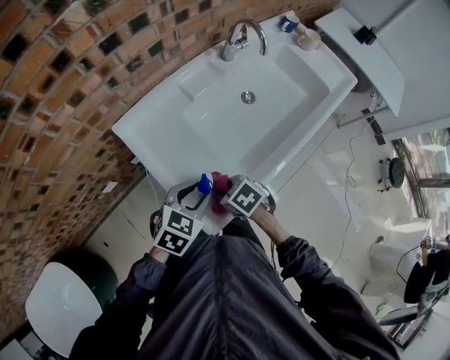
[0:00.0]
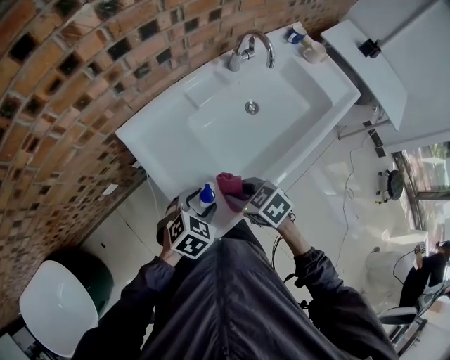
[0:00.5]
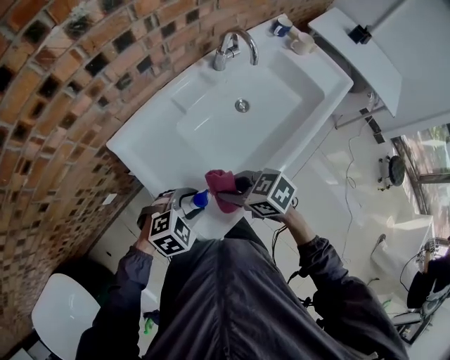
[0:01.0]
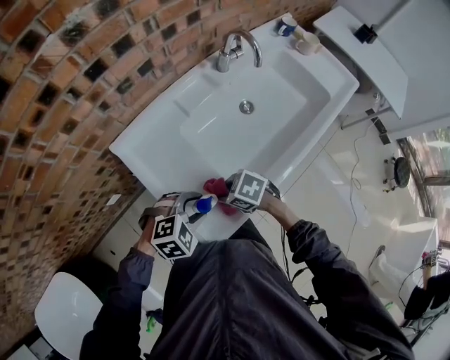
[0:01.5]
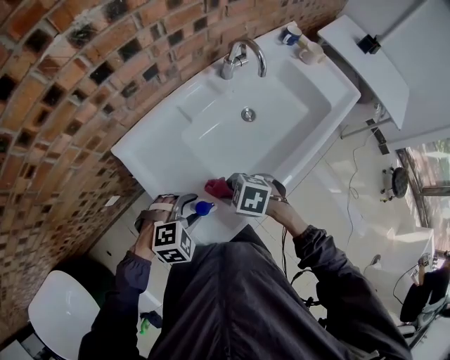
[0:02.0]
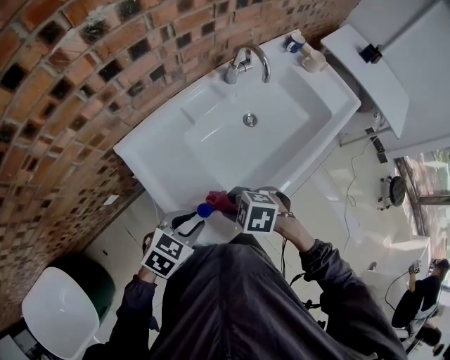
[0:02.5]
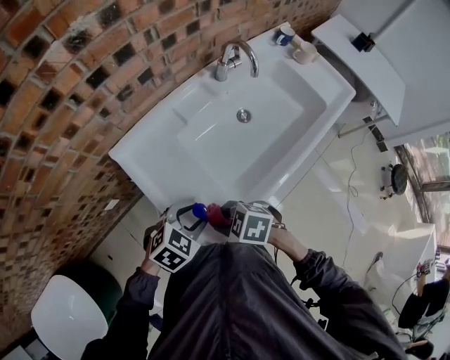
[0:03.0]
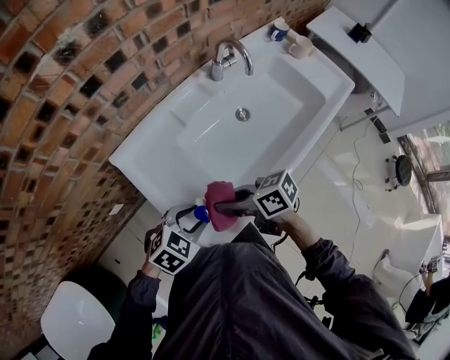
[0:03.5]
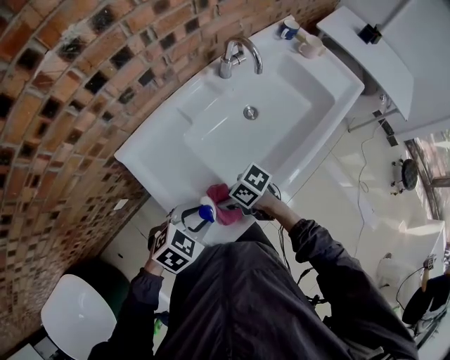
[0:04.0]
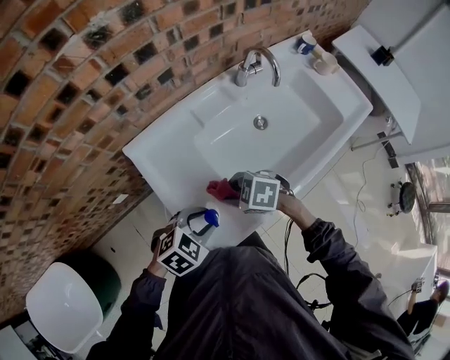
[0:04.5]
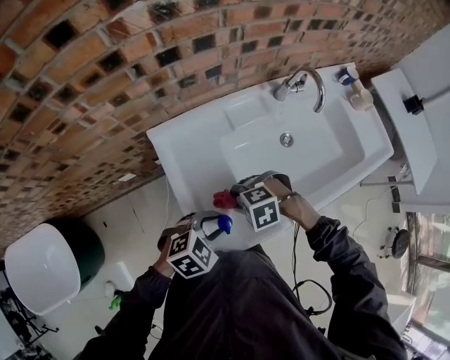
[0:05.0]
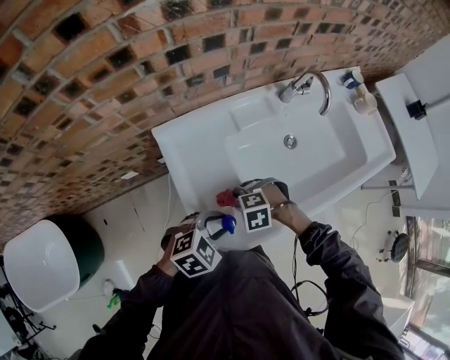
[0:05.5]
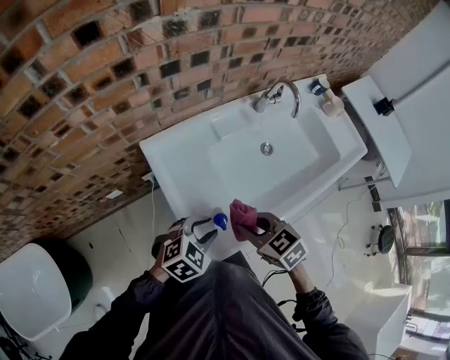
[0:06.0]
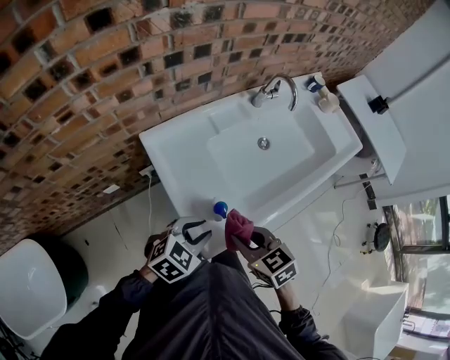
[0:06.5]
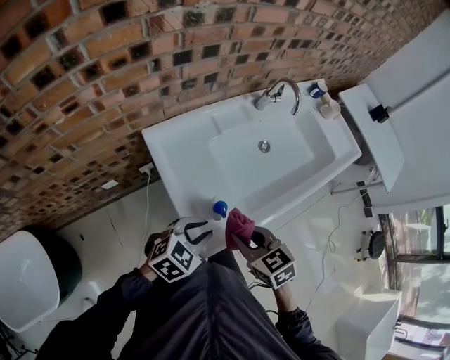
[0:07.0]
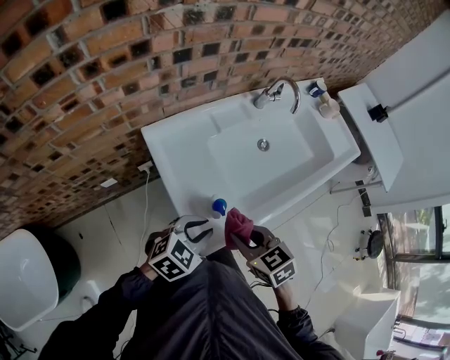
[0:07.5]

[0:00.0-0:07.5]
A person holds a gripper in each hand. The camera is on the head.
0:00.0 to 0:02.0: The left gripper rotates around the line of its fingers by about 40 degrees, clockwise from behind, and opens up; the right gripper swings up and down, roughly 10 cm each way, with 2 reversals, and changes its angle by roughly 30 degrees.
0:02.0 to 0:04.0: The right gripper swivels approximately 40 degrees. Meanwhile the left gripper swivels roughly 30 degrees.
0:04.0 to 0:05.5: The right gripper rotates around the line of its fingers by roughly 70 degrees, counterclockwise from behind.
0:05.5 to 0:07.5: The right gripper goes some 15 cm upward, and rotates around the line of its fingers by approximately 60 degrees, clockwise from behind. Meanwhile the left gripper moves about 5 cm.

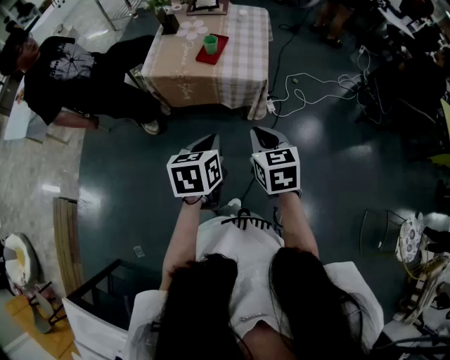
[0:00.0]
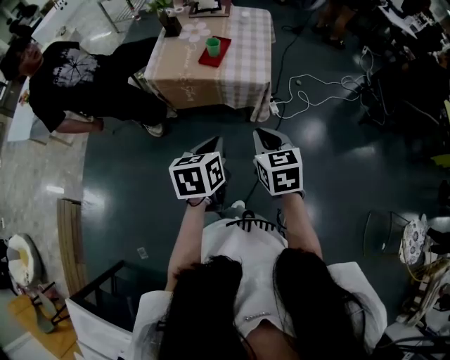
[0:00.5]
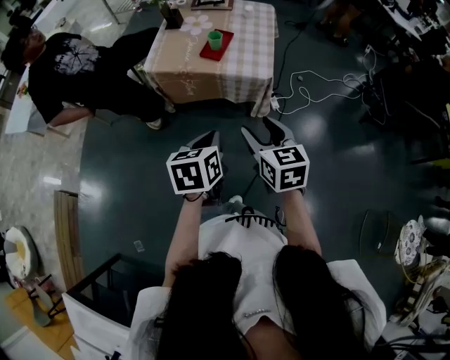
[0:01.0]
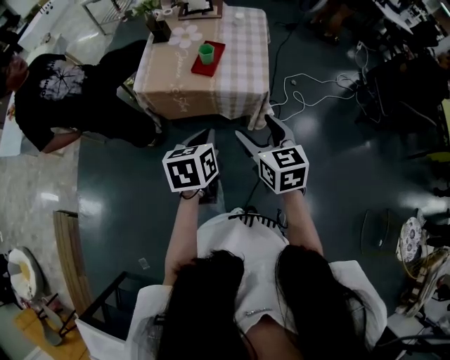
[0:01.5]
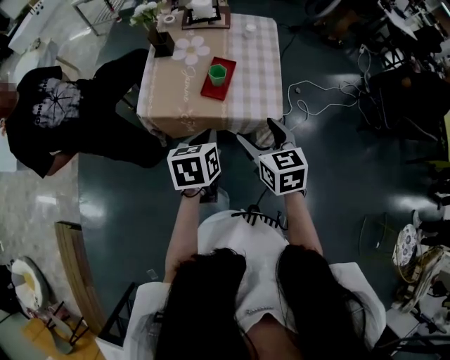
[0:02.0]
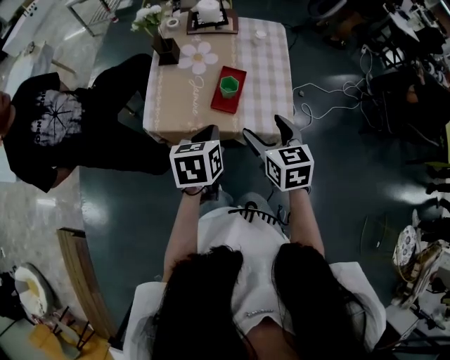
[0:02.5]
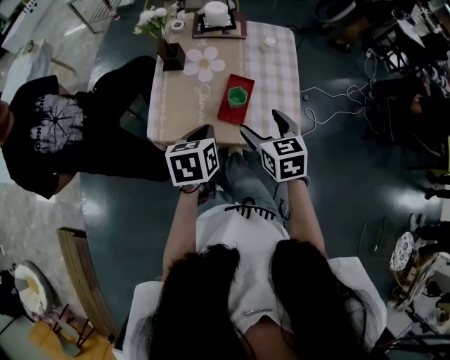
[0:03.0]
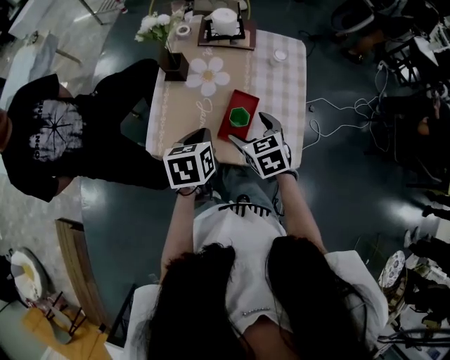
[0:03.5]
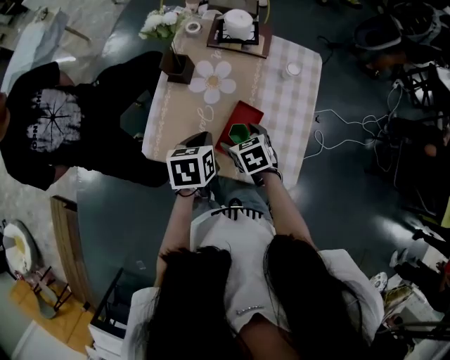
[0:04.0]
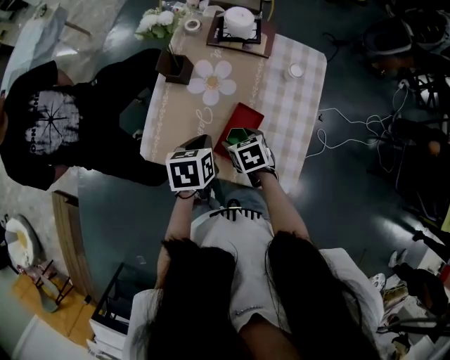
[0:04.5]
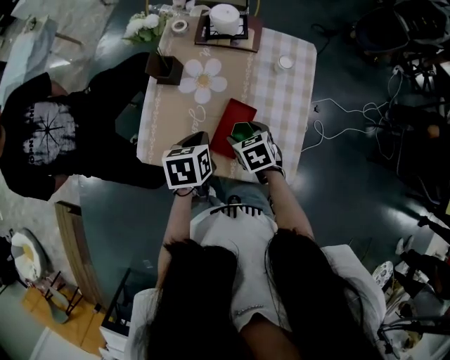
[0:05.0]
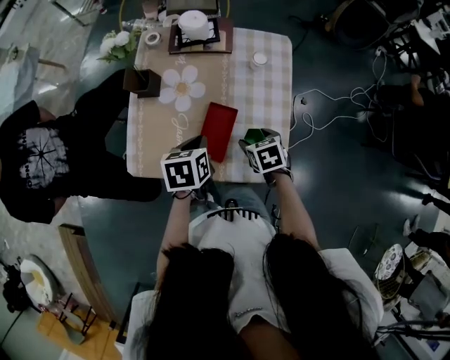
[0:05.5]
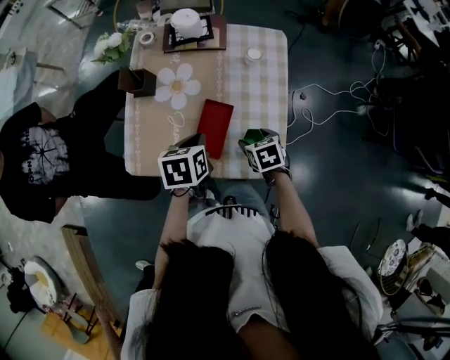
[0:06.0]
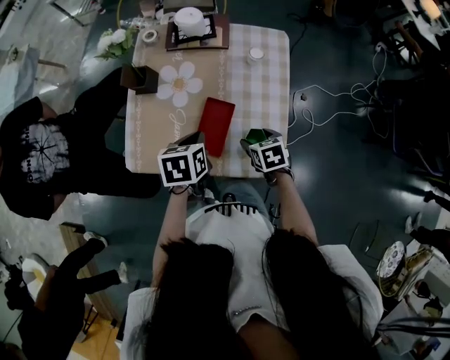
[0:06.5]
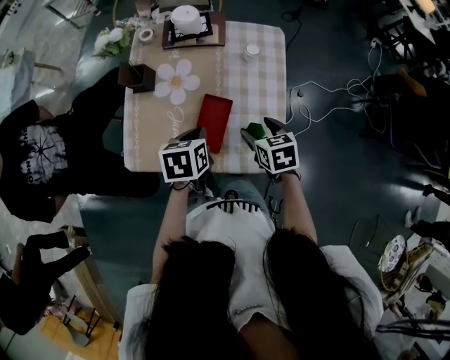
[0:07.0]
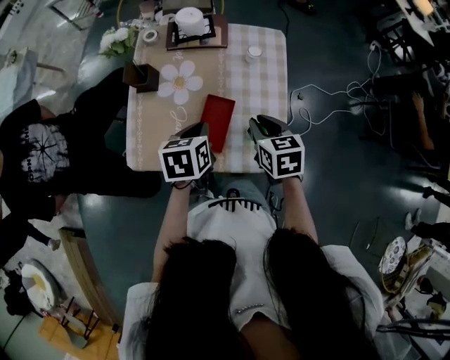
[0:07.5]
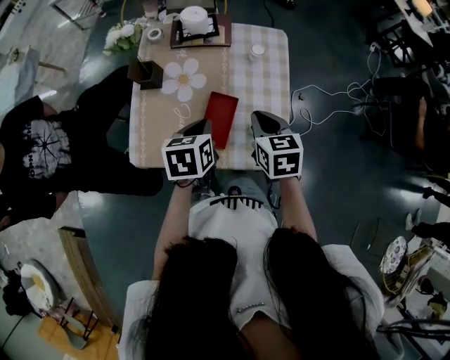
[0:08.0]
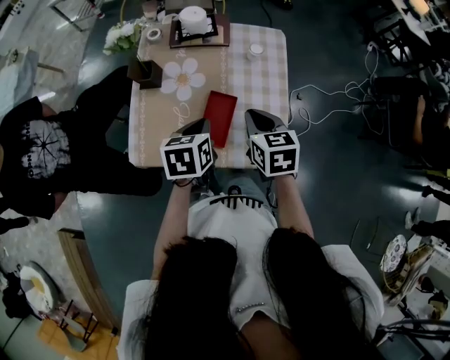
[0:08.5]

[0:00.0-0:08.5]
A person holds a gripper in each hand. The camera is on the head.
0:00.0 to 0:02.0: Both grippers move forward, some 25 cm. The right gripper opens.
0:02.0 to 0:04.0: The left gripper shifts roughly 25 cm forward. The right gripper goes about 30 cm forward and downward, and changes its angle by approximately 30 degrees.
0:04.0 to 0:06.5: The right gripper travels to the right by roughly 15 cm. Meanwhile the left gripper goes roughly 5 cm to the right.
0:06.5 to 0:08.5: The right gripper travels upward by approximately 15 cm, swivels some 20 degrees, and closes.

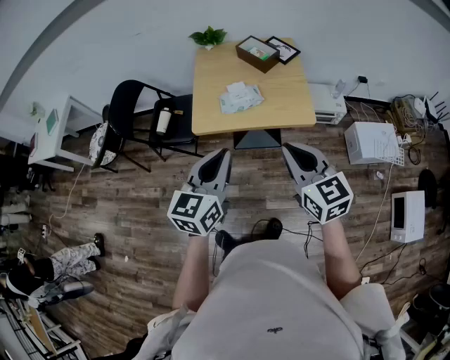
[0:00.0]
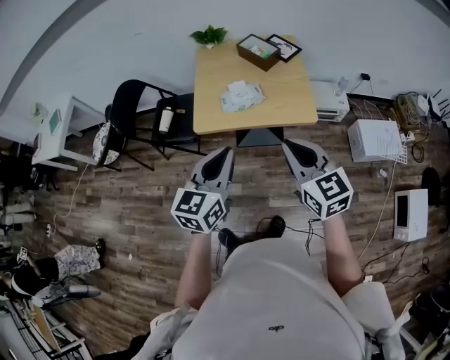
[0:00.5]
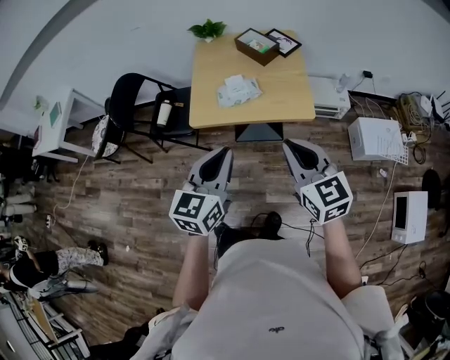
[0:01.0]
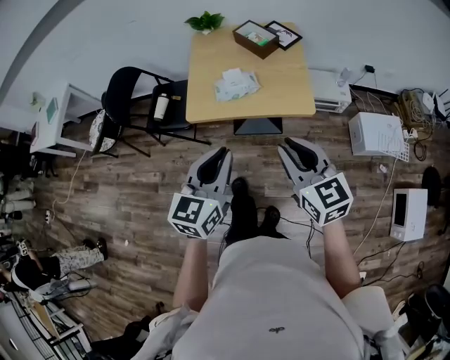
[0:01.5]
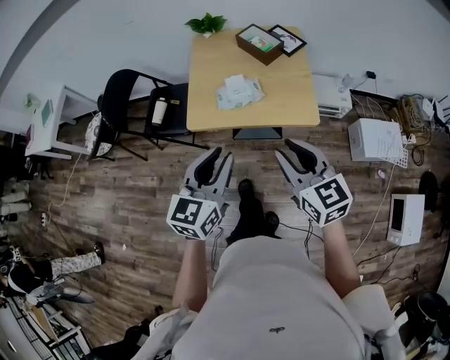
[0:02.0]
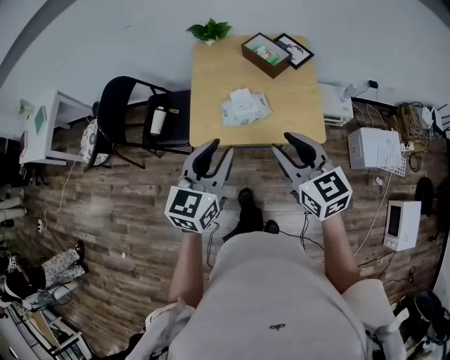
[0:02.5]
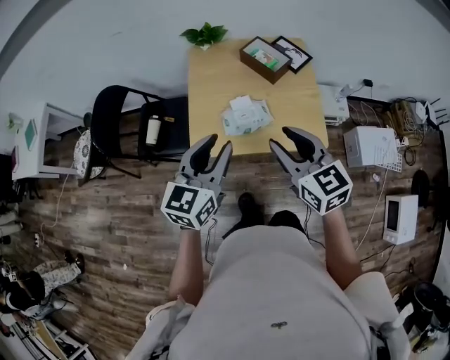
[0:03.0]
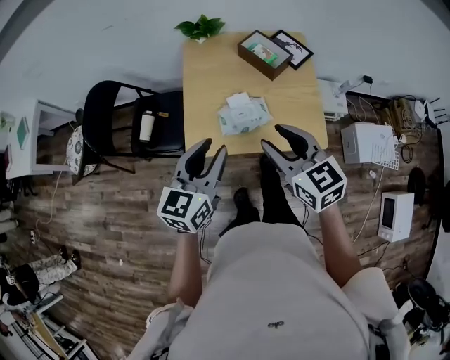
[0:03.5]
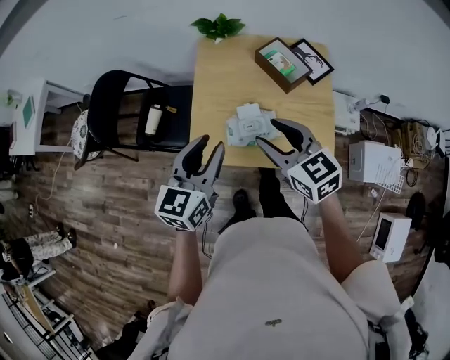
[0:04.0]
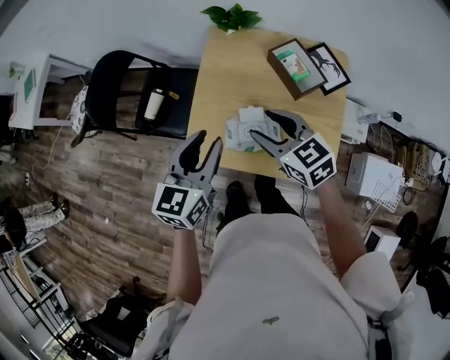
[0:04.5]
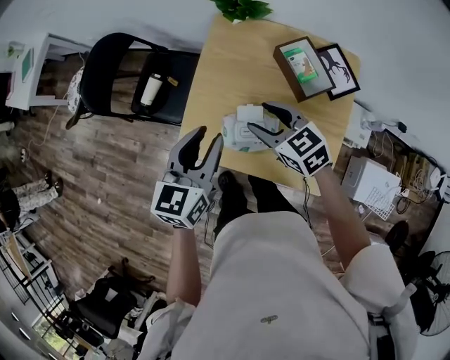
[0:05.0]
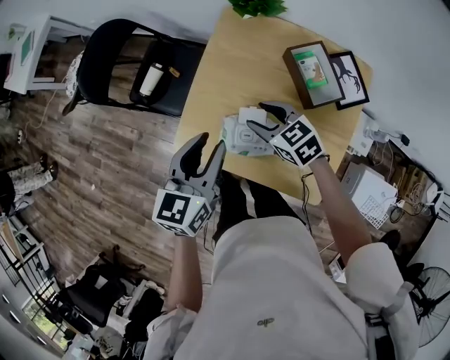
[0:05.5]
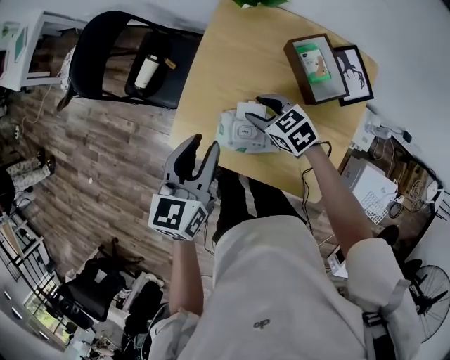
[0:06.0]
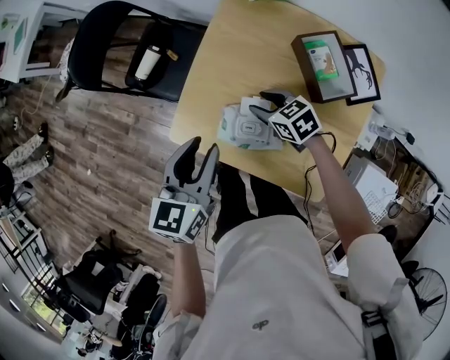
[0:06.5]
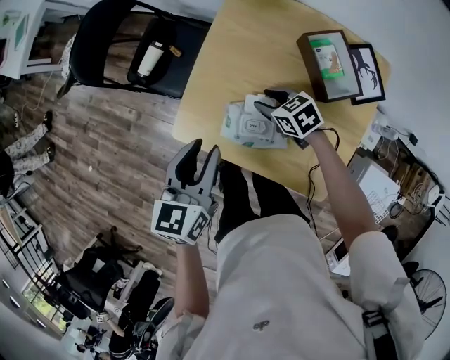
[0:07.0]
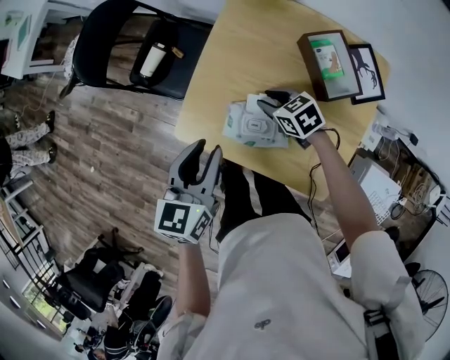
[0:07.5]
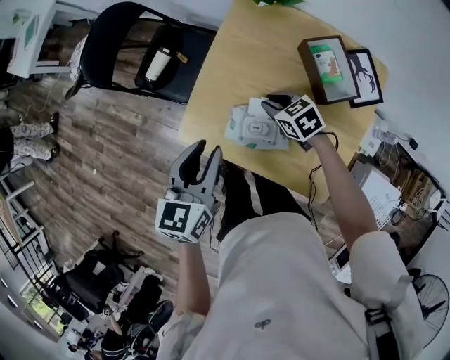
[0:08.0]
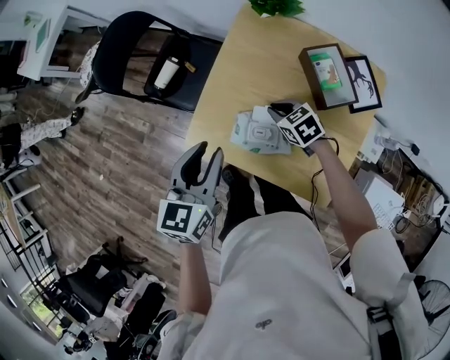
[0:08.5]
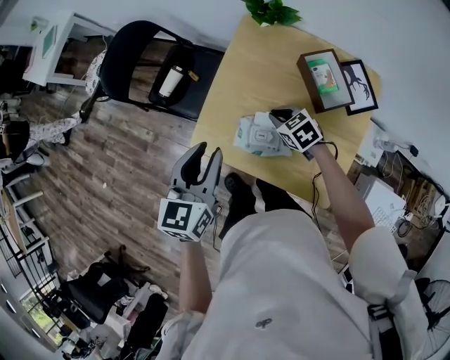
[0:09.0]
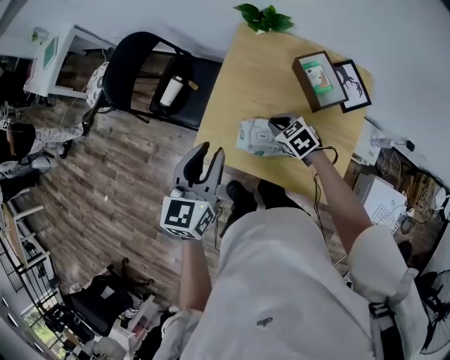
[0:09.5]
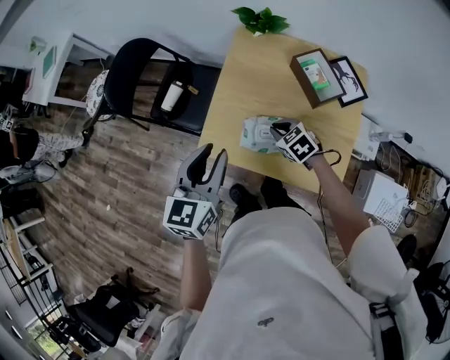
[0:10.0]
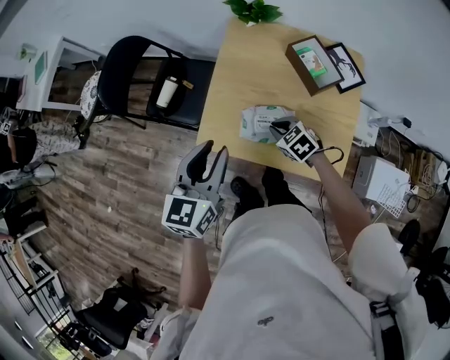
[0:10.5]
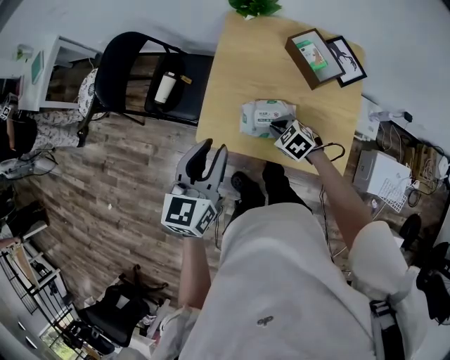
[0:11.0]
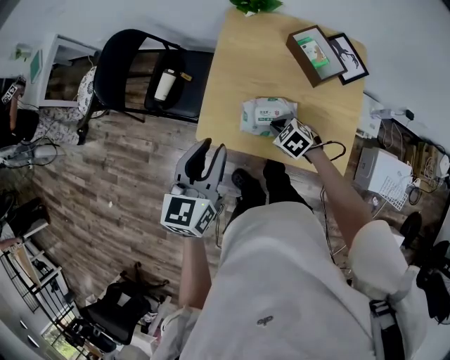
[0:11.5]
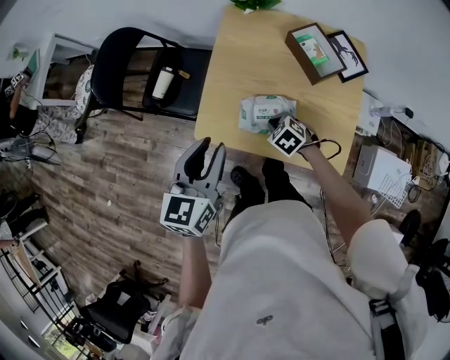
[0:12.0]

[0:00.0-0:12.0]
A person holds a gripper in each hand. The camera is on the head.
0:00.0 to 0:02.0: The left gripper moves some 5 cm, and opens its fingers. The right gripper heads forward, covering some 5 cm, and opens its fingers.
0:02.0 to 0:04.0: Both grippers travel together forward, roughly 30 cm.
0:04.0 to 0:06.0: The right gripper goes approximately 25 cm downward, and rotates roughly 40 degrees. The left gripper is displaced downward by roughly 10 cm, and rotates some 20 degrees.
0:06.0 to 0:08.0: The right gripper closes.
0:08.0 to 0:10.0: The left gripper goes approximately 5 cm upward. Meanwhile the right gripper shifts roughly 5 cm backward.
0:10.0 to 0:12.0: The right gripper is displaced downward by some 5 cm.
